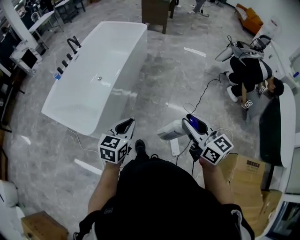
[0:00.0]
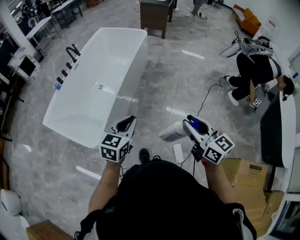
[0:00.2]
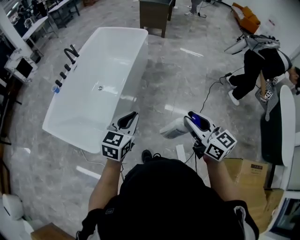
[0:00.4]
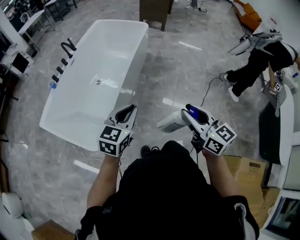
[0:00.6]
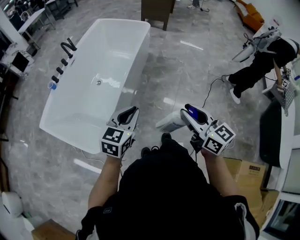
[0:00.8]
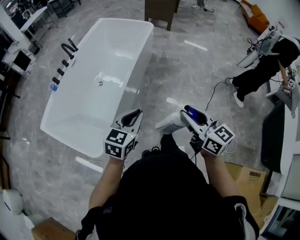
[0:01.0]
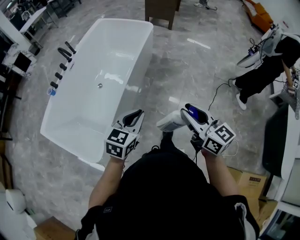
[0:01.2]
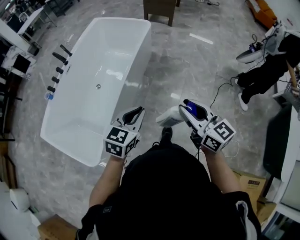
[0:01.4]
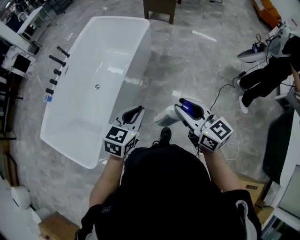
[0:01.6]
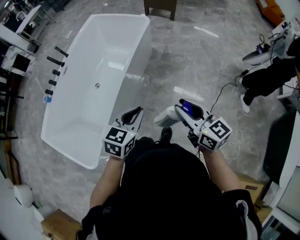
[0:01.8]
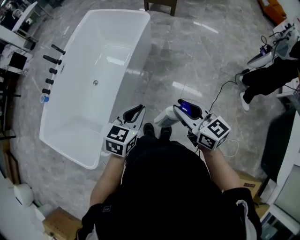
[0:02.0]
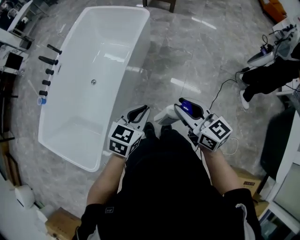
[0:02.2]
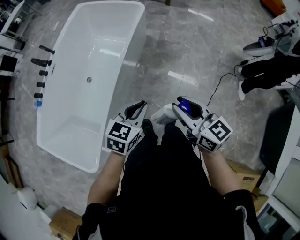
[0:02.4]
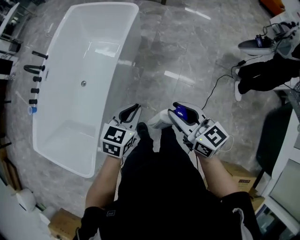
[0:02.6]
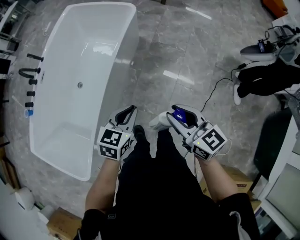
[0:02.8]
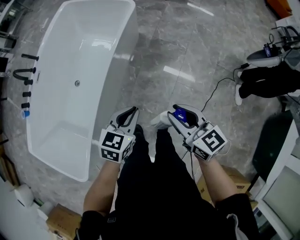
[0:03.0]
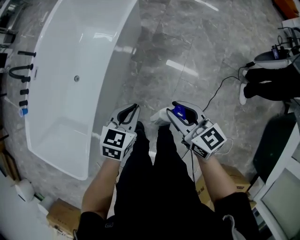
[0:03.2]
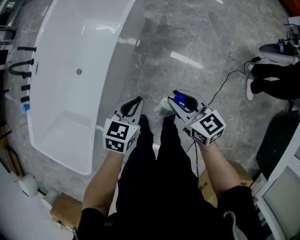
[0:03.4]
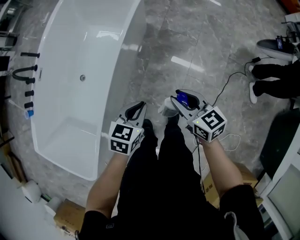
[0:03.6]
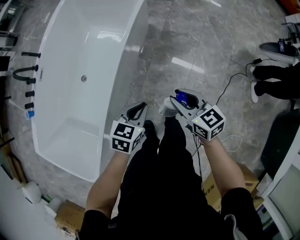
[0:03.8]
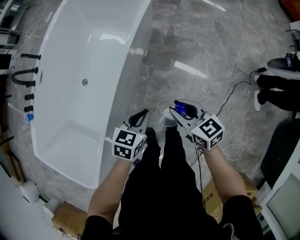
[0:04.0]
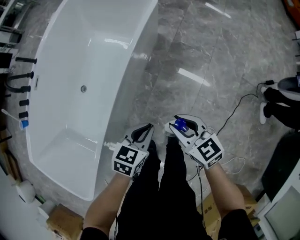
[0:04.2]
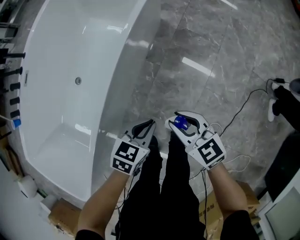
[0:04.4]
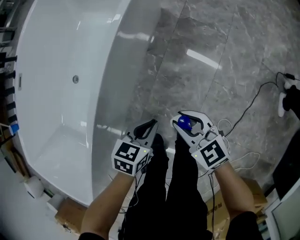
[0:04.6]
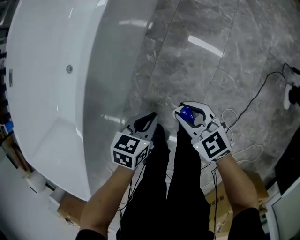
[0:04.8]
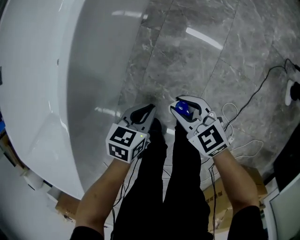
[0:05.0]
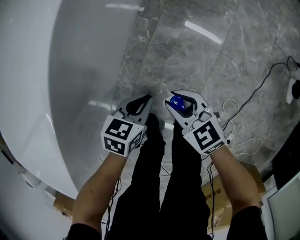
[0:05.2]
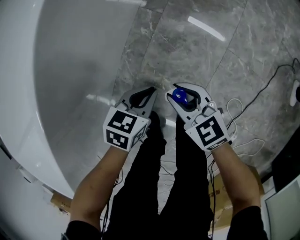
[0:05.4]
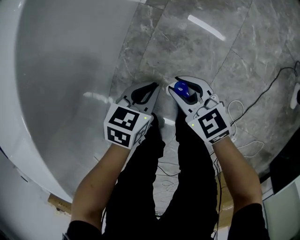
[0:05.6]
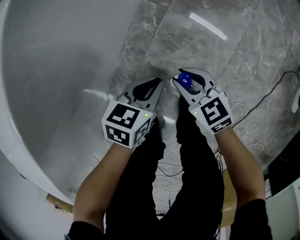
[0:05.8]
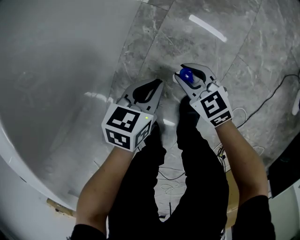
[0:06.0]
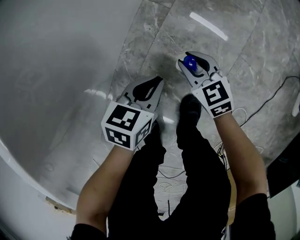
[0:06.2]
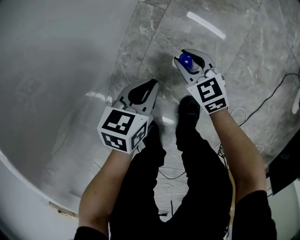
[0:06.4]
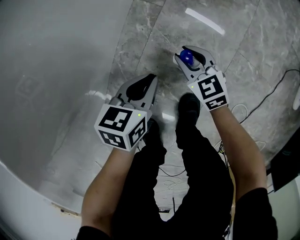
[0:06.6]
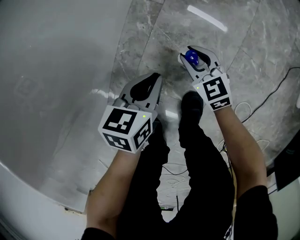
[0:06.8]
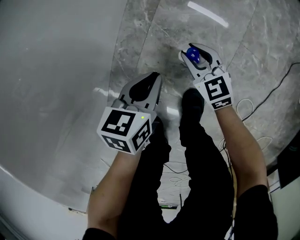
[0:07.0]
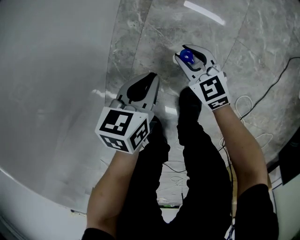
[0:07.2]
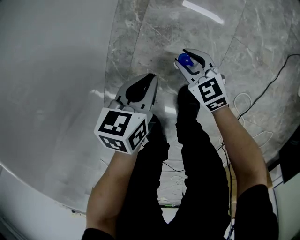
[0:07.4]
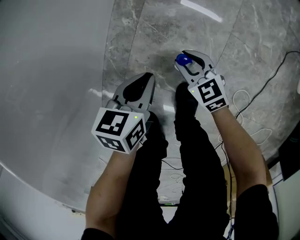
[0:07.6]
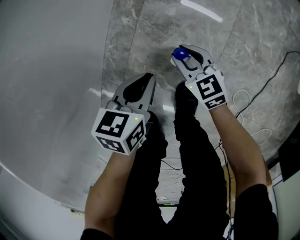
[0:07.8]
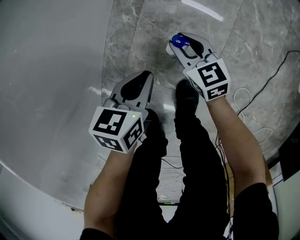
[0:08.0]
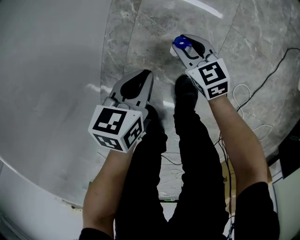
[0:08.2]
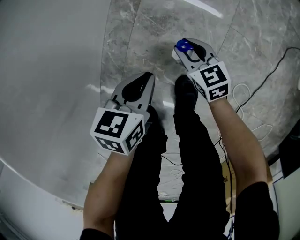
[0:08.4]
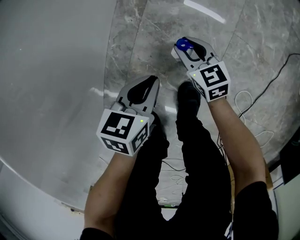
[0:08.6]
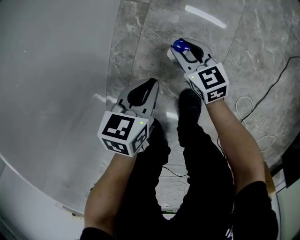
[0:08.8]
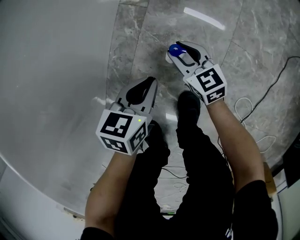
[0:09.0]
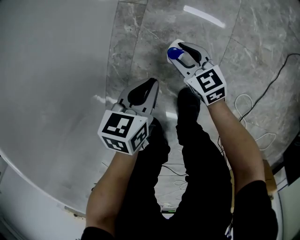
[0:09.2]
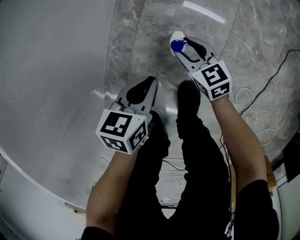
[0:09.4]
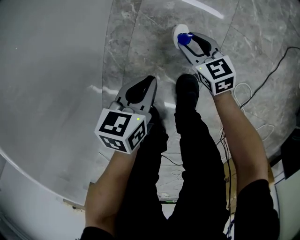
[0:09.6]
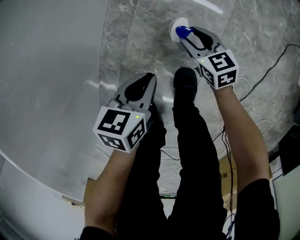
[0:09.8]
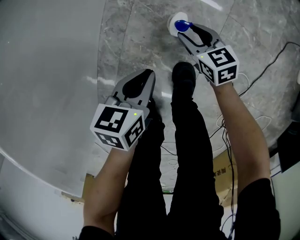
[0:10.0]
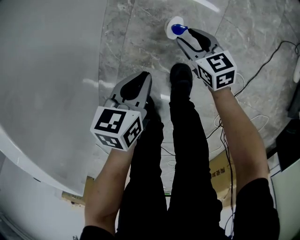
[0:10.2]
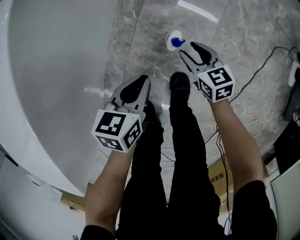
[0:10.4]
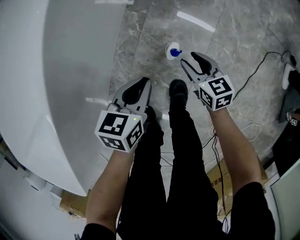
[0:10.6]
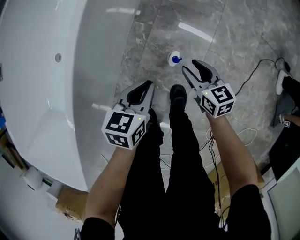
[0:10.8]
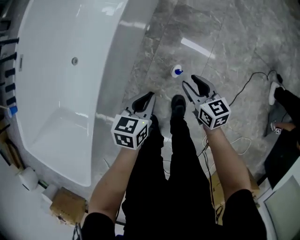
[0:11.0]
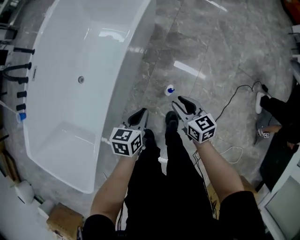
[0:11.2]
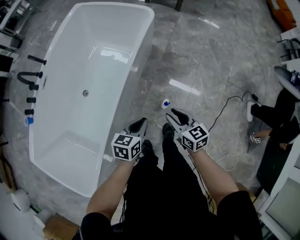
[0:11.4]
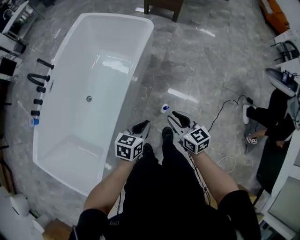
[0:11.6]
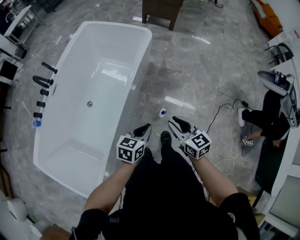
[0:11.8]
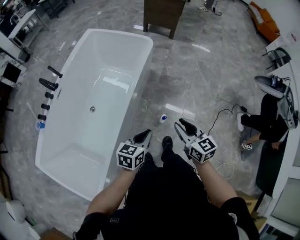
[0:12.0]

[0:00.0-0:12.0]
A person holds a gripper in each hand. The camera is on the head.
0:00.0 to 0:01.6: Both grippers are carried forward, roughly 50 cm.
0:01.6 to 0:03.0: The grippers both shift forward and downward by approximately 25 cm.
0:03.0 to 0:04.4: Both grippers travel together downward, some 30 cm.
0:04.4 to 0:06.0: The two grippers go about 40 cm downward.
0:06.0 to 0:07.6: The right gripper moves to the right and downward, about 10 cm.
0:07.6 to 0:09.0: The right gripper moves forward, about 5 cm.
0:09.0 to 0:10.4: The right gripper heads upward and to the right, covering approximately 10 cm; the left gripper is displaced upward by approximately 10 cm.
0:10.4 to 0:12.0: The two grippers go approximately 60 cm upward. The right gripper turns by approximately 20 degrees, while the left gripper swivels approximately 20 degrees.

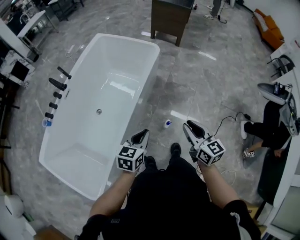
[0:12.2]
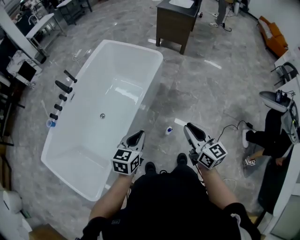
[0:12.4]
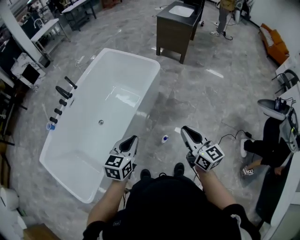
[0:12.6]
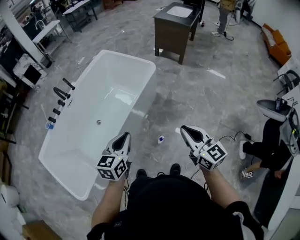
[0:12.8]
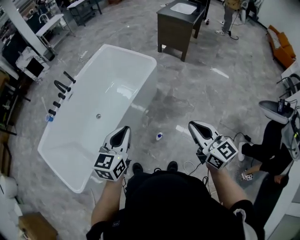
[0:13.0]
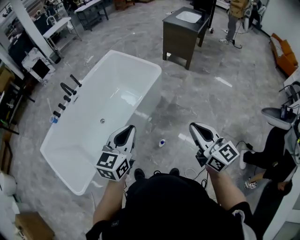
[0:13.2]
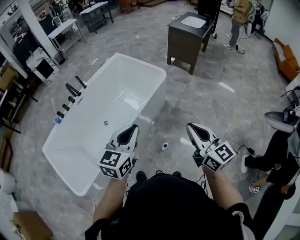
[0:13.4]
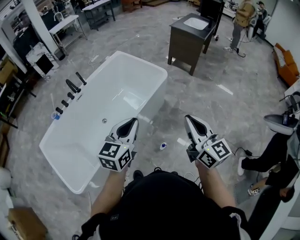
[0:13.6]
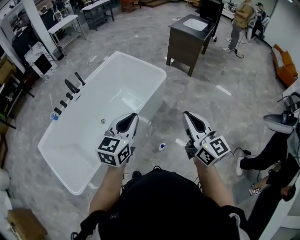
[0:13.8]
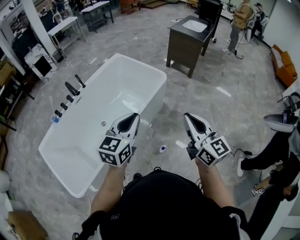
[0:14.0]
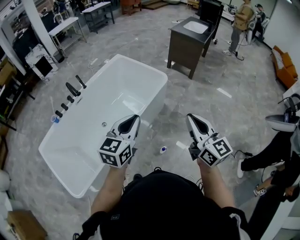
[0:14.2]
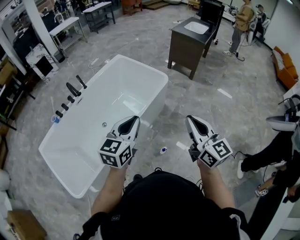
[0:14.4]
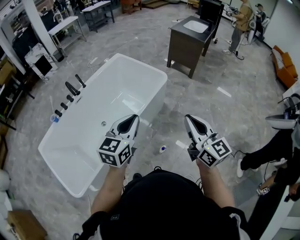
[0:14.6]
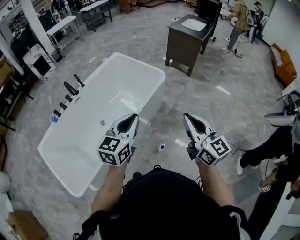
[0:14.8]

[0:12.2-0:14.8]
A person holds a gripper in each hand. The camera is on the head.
0:12.2 to 0:13.4: Both grippers travel together upward and to the right, roughly 20 cm. The right gripper changes its angle by approximately 20 degrees. Meanwhile the left gripper rotates approximately 30 degrees.
0:13.4 to 0:14.8: The right gripper shifts by some 5 cm; the left gripper goes roughly 5 cm forward.

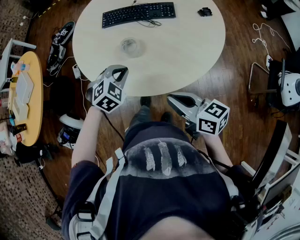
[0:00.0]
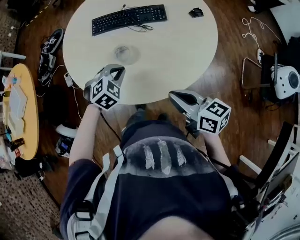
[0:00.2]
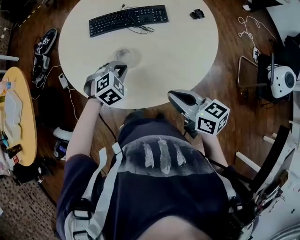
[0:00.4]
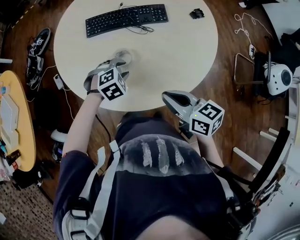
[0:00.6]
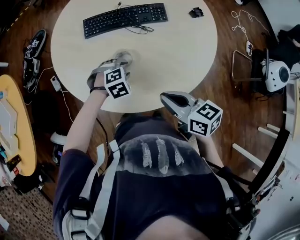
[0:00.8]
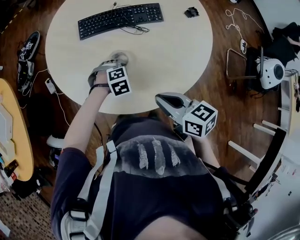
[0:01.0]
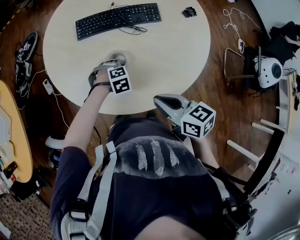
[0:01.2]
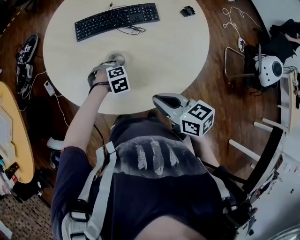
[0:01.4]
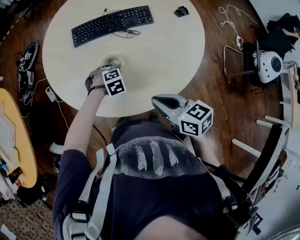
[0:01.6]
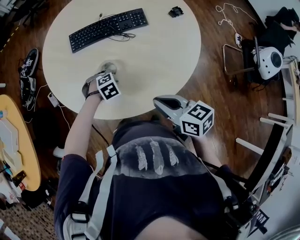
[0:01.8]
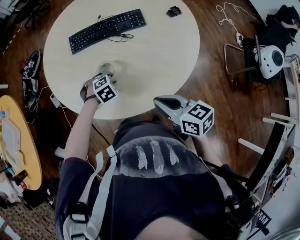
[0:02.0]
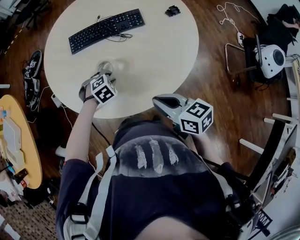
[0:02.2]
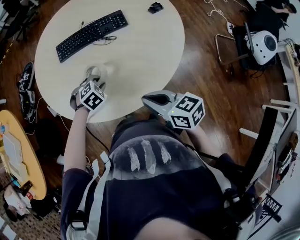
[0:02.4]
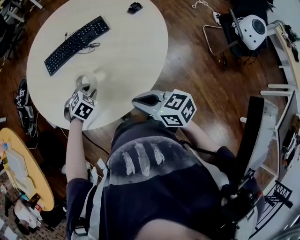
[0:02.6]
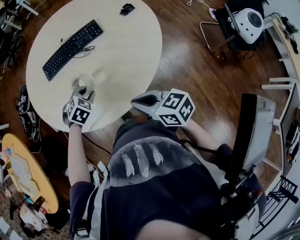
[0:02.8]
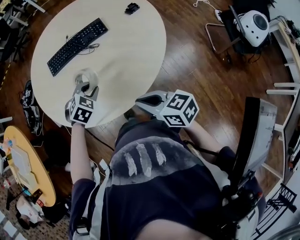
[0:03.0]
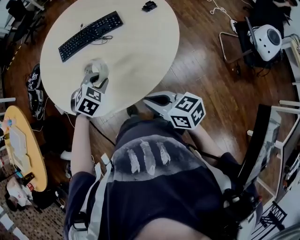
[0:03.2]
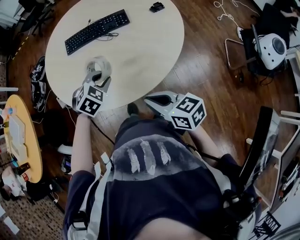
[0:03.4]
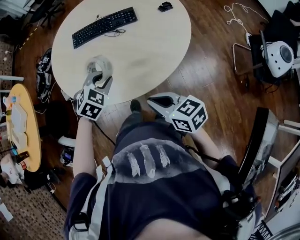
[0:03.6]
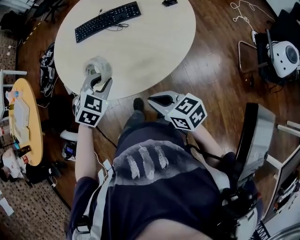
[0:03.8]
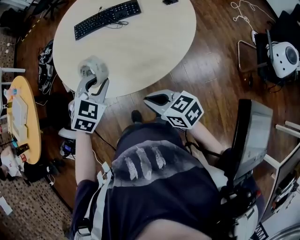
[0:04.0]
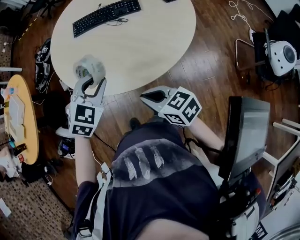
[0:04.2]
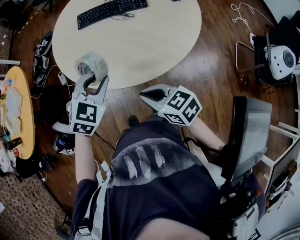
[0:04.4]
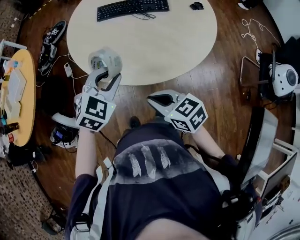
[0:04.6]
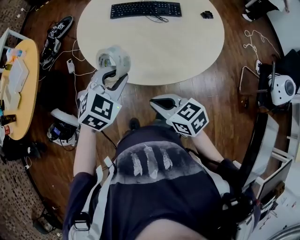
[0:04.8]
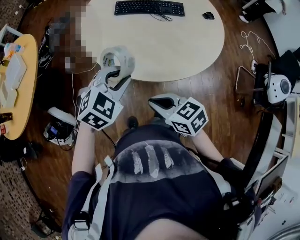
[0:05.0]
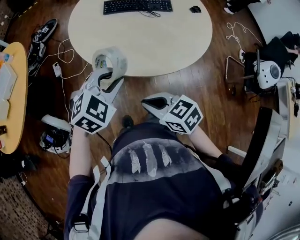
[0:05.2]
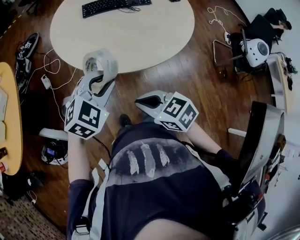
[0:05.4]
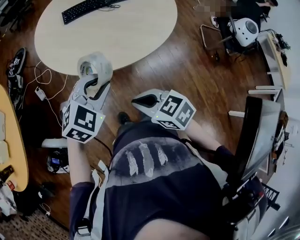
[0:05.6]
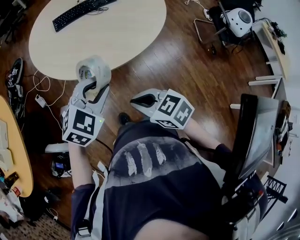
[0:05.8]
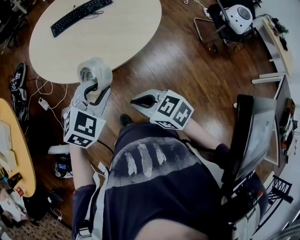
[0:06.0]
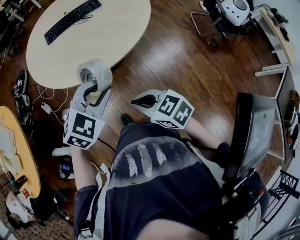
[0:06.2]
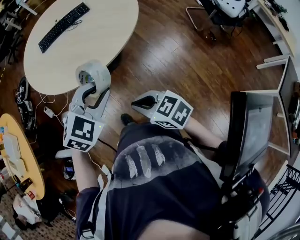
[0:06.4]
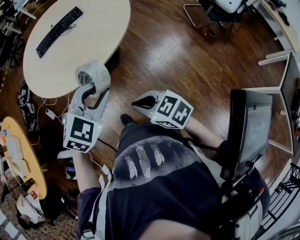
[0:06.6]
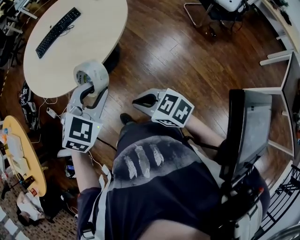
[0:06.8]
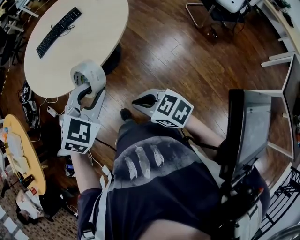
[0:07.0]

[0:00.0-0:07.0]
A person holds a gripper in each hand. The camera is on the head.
0:00.0 to 0:01.4: The left gripper is displaced downward by approximately 15 cm, rotates about 40 degrees, and opens; the right gripper shifts by roughly 10 cm.
0:01.4 to 0:02.8: The right gripper shifts by roughly 10 cm, while the left gripper moves upward, some 10 cm, and rotates roughly 20 degrees.
0:02.8 to 0:04.2: The left gripper moves upward and backward, roughly 20 cm, and turns by approximately 30 degrees. The right gripper shifts some 5 cm backward.
0:04.2 to 0:05.6: The grippers both shift to the left and backward by approximately 20 cm. The left gripper changes its angle by some 20 degrees.
0:05.6 to 0:07.0: The two grippers go some 25 cm to the right.

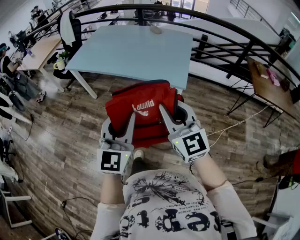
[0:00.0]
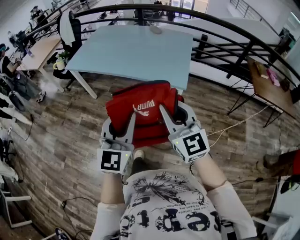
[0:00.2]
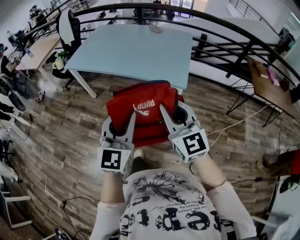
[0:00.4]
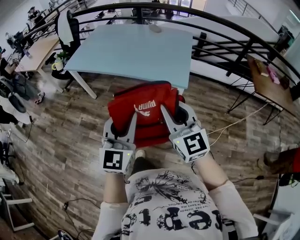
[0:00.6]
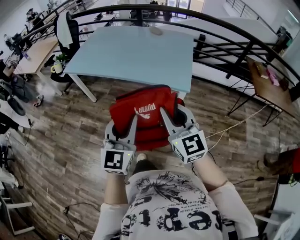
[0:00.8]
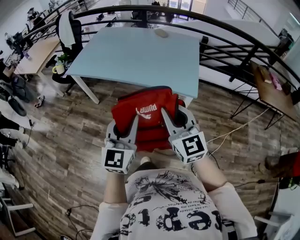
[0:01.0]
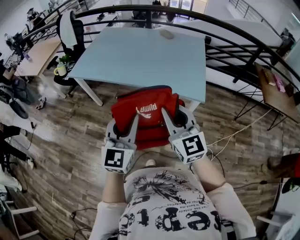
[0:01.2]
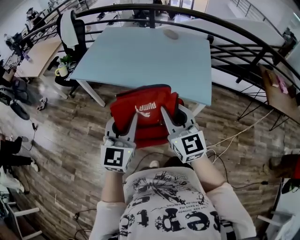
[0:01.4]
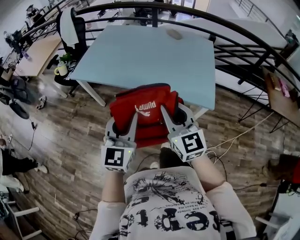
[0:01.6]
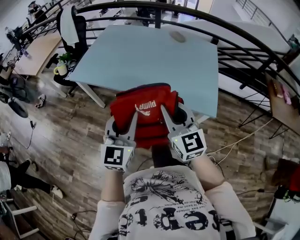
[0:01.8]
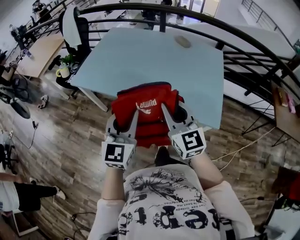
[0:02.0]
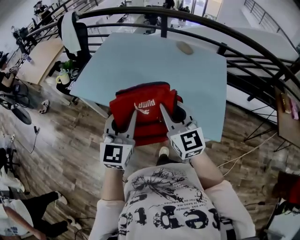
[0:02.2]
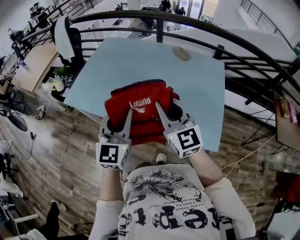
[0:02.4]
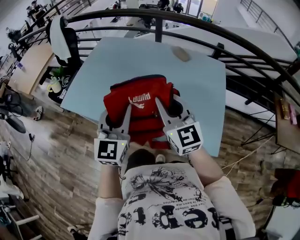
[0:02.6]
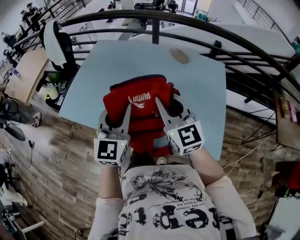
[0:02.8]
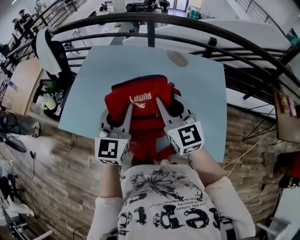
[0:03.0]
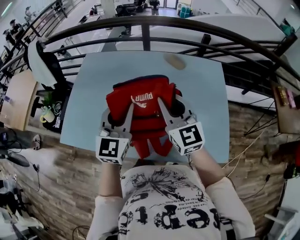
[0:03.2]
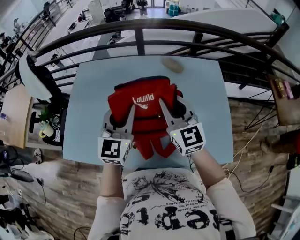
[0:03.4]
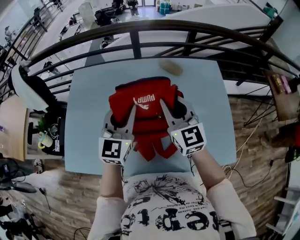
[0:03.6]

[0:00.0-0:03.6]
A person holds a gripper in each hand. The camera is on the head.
0:00.0 to 0:01.8: Both grippers travel together forward and to the left, about 30 cm.
0:01.8 to 0:03.6: Both grippers are carried forward, roughly 60 cm. The left gripper rotates roughly 20 degrees.
